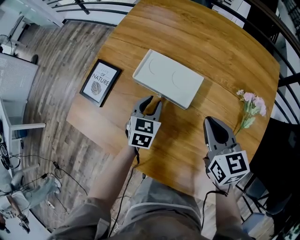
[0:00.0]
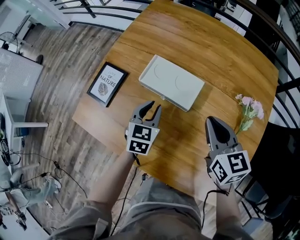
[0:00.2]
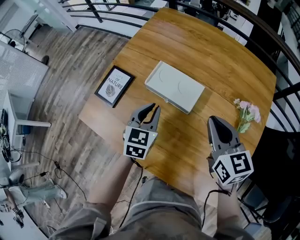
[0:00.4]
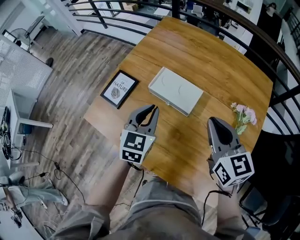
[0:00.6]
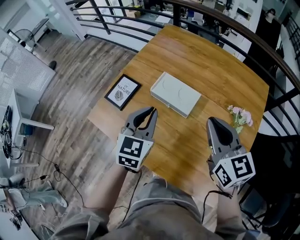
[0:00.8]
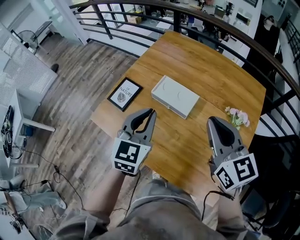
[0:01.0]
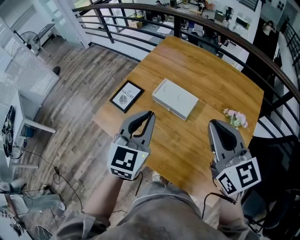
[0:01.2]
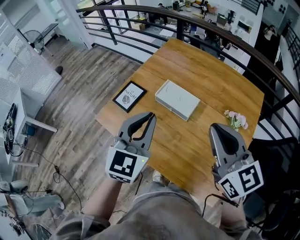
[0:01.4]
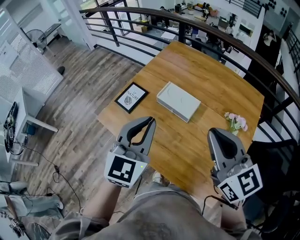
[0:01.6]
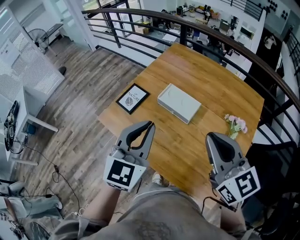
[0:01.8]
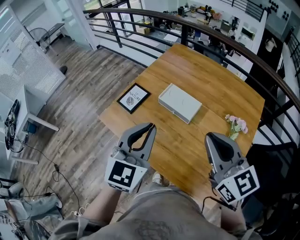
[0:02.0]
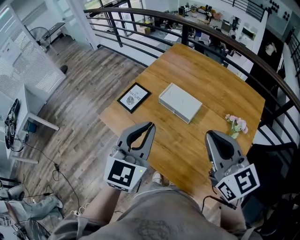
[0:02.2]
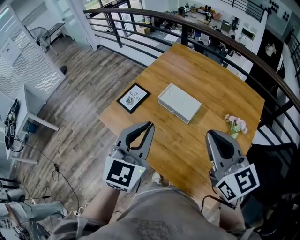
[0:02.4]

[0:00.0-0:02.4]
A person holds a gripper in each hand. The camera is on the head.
0:00.0 to 0:01.2: The grippers both shift upward by some 30 cm. The right gripper changes its angle by approximately 20 degrees. The left gripper turns by about 30 degrees, and closes.
0:01.2 to 0:02.4: The left gripper heads backward, covering approximately 5 cm.

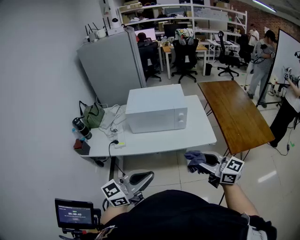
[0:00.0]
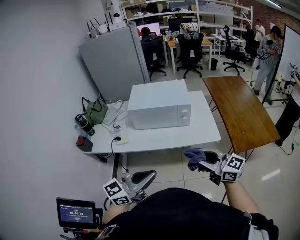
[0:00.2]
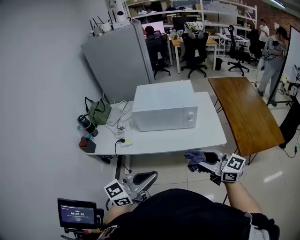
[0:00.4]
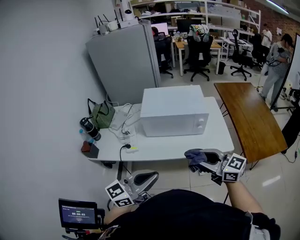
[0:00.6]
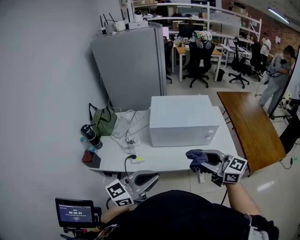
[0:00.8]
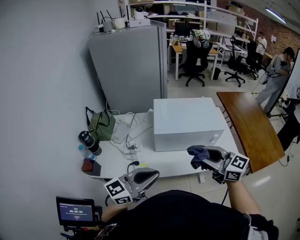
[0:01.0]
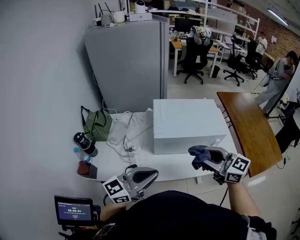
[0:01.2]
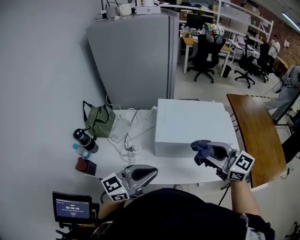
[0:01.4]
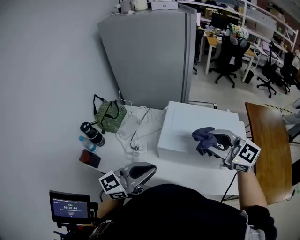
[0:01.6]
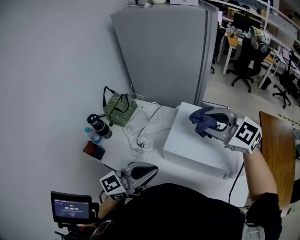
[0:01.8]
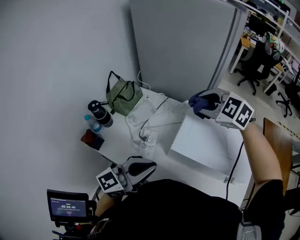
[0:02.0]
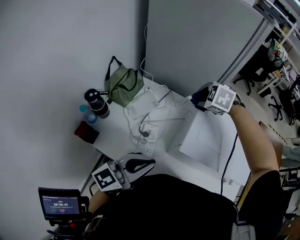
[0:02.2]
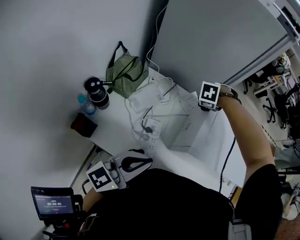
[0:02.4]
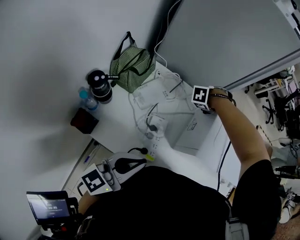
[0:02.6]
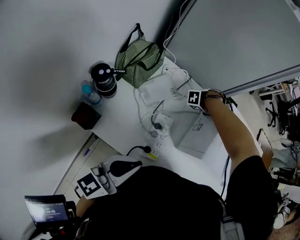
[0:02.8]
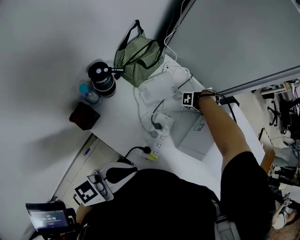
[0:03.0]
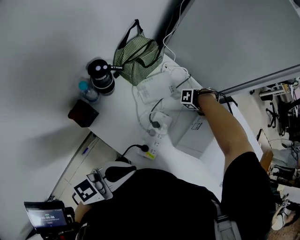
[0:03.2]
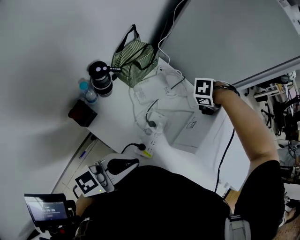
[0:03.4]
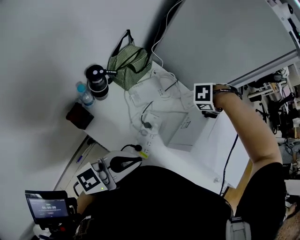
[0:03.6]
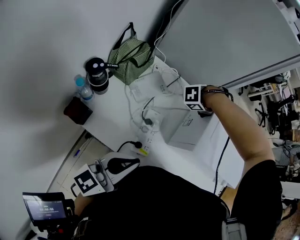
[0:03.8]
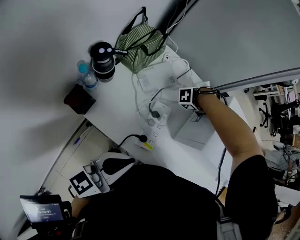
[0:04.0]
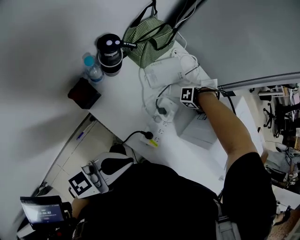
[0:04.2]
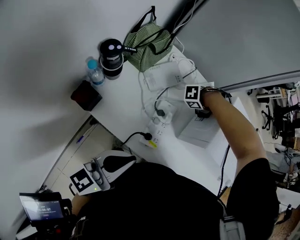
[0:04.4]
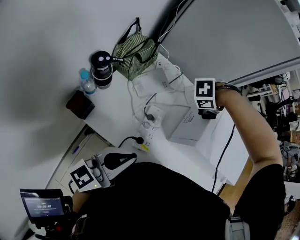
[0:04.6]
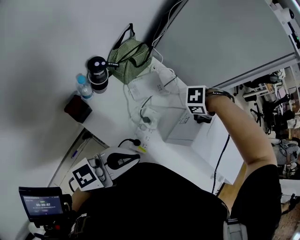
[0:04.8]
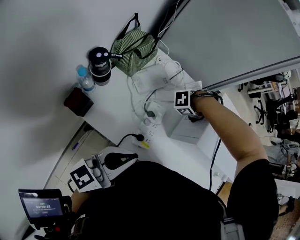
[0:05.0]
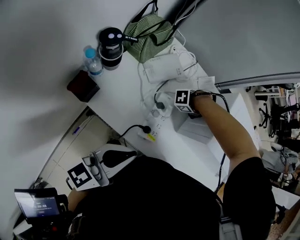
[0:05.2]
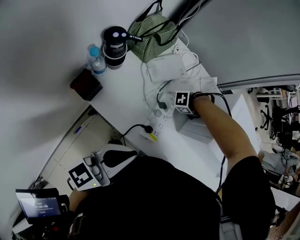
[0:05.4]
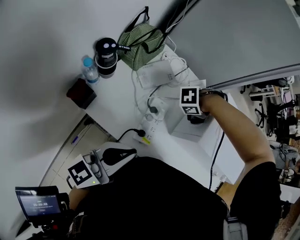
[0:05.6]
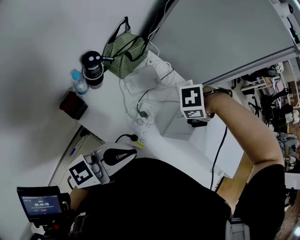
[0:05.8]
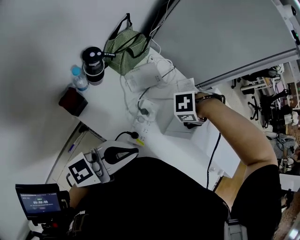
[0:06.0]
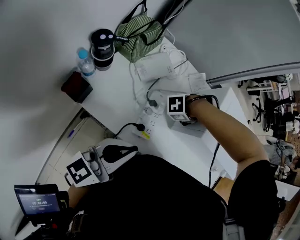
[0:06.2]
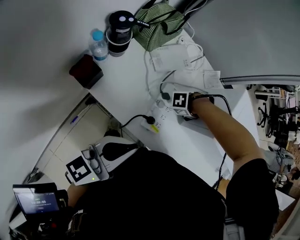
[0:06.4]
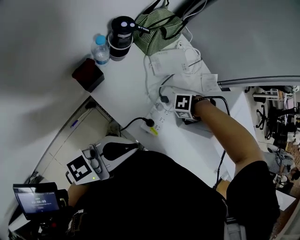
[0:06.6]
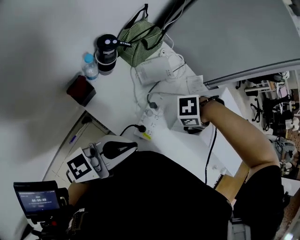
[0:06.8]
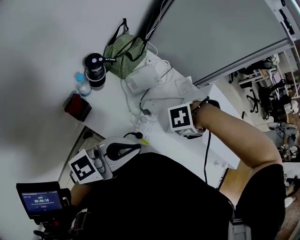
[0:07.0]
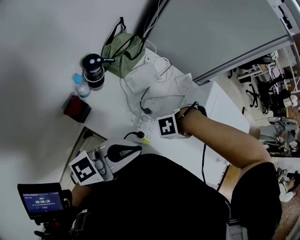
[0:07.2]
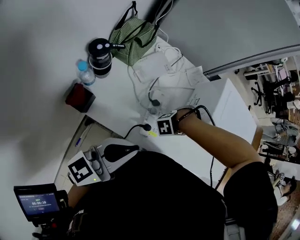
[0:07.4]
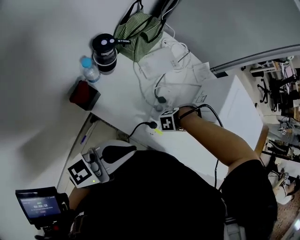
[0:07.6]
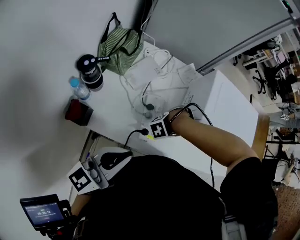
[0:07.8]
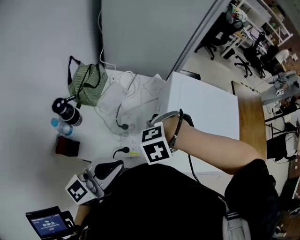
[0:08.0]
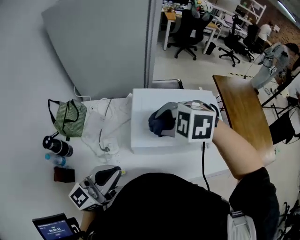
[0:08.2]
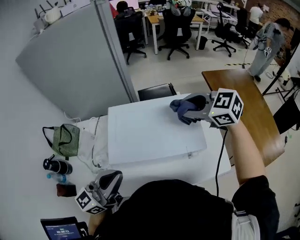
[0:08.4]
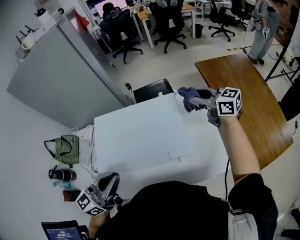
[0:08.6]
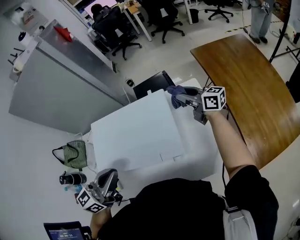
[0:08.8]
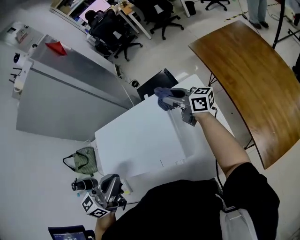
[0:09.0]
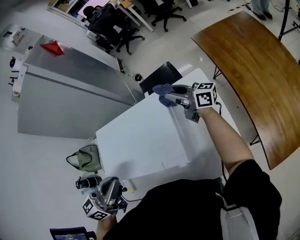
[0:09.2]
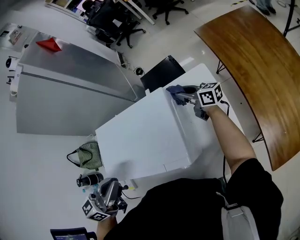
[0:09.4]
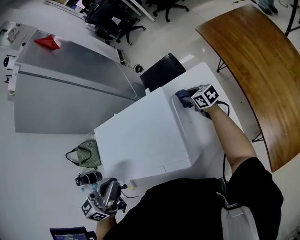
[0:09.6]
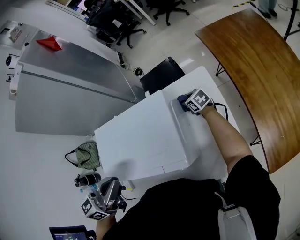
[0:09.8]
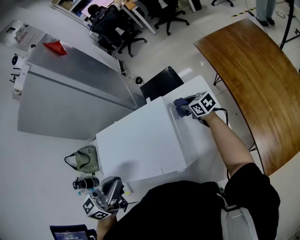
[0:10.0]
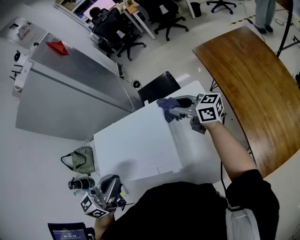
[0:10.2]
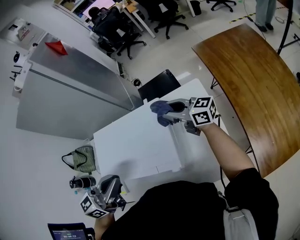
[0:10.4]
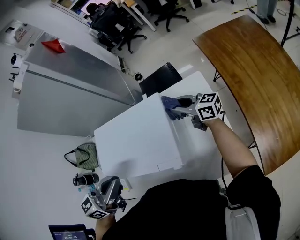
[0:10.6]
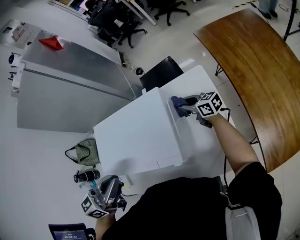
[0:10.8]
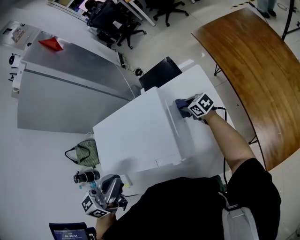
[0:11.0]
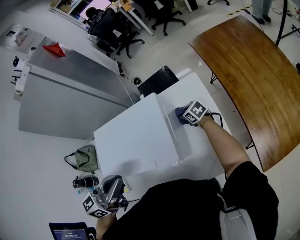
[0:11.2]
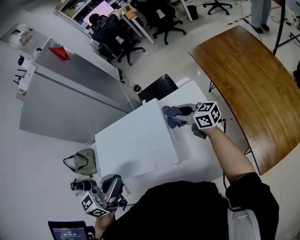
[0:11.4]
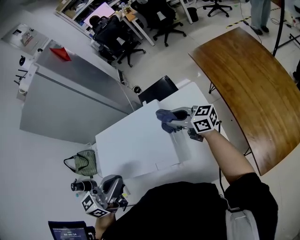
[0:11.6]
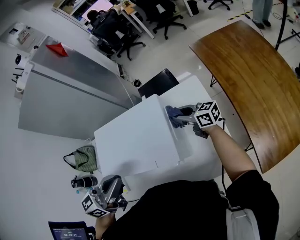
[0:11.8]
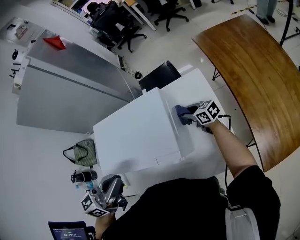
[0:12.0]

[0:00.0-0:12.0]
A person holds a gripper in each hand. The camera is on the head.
0:00.0 to 0:01.6: Both grippers move forward and to the left, roughly 40 cm. The right gripper turns by some 30 degrees.
0:01.6 to 0:03.0: The left gripper ends up some 25 cm from where it was, and turns by some 30 degrees, while the right gripper shifts approximately 40 cm downward, and angles its fingers downward, by about 40 degrees.
0:03.0 to 0:04.4: The right gripper swings up and down, roughly 20 cm each way, with 2 reversals.
0:04.4 to 0:06.0: The right gripper goes up and down, roughly 20 cm each way, reversing 3 times. Meanwhile the left gripper swings up and down, roughly 5 cm each way, with 2 reversals.
0:06.0 to 0:07.6: The right gripper swings up and down, roughly 20 cm each way, with 2 reversals, while the left gripper goes up and down, roughly 10 cm each way, reversing 2 times.
0:07.6 to 0:09.0: Both grippers are carried about 50 cm. The left gripper changes its angle by approximately 30 degrees. Meanwhile the right gripper tilts its fingers approximately 70 degrees upward.
0:09.0 to 0:10.4: The right gripper reaches roughly 25 cm downward, then returns.
0:10.4 to 0:12.0: The right gripper goes up and down, some 25 cm each way, reversing 2 times, and swivels some 30 degrees.

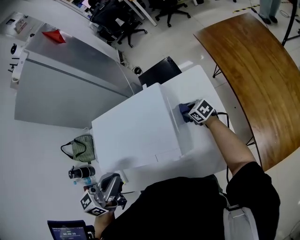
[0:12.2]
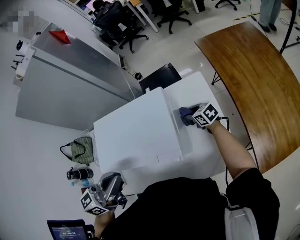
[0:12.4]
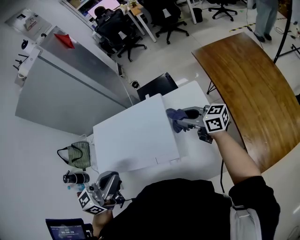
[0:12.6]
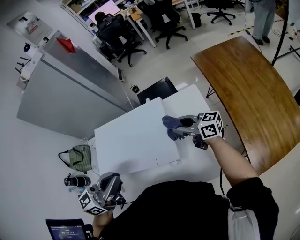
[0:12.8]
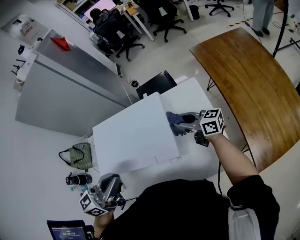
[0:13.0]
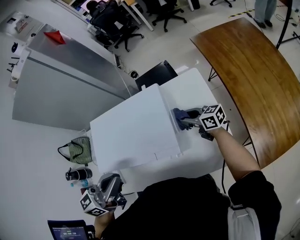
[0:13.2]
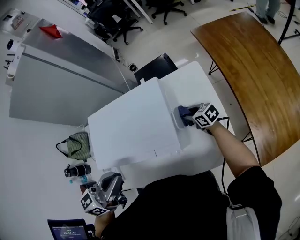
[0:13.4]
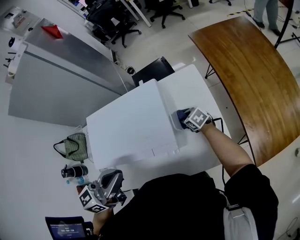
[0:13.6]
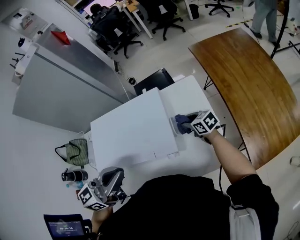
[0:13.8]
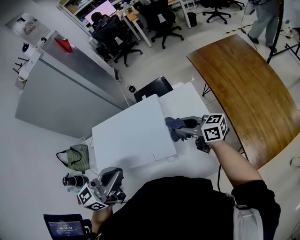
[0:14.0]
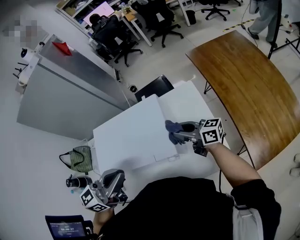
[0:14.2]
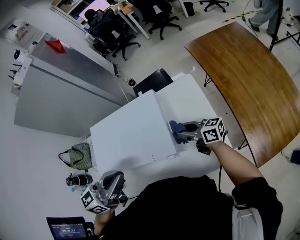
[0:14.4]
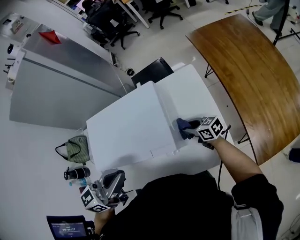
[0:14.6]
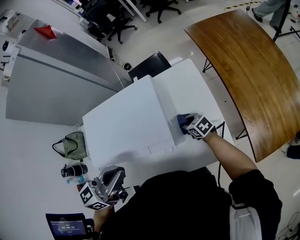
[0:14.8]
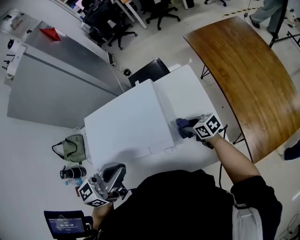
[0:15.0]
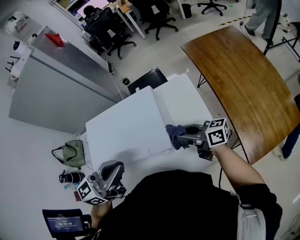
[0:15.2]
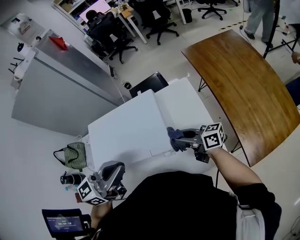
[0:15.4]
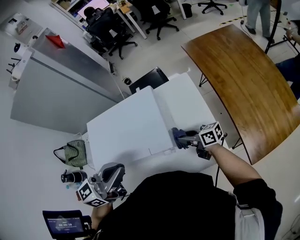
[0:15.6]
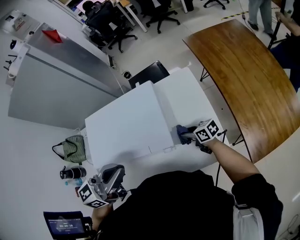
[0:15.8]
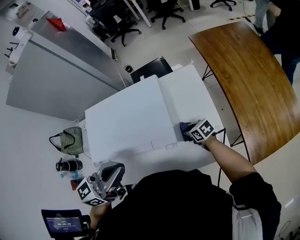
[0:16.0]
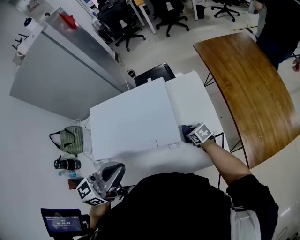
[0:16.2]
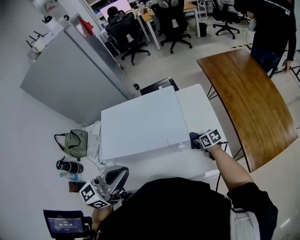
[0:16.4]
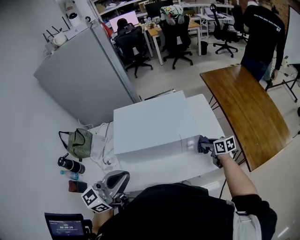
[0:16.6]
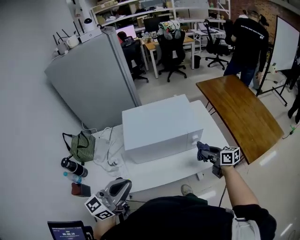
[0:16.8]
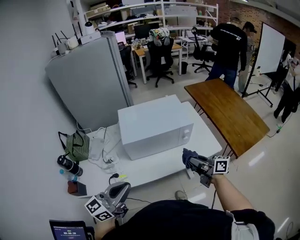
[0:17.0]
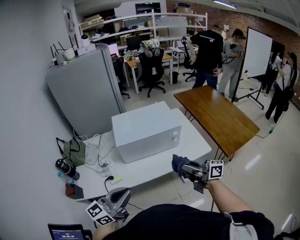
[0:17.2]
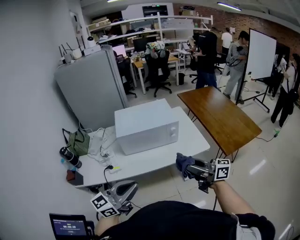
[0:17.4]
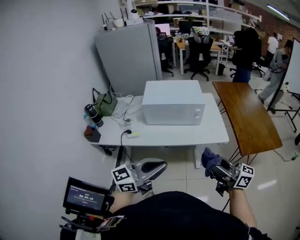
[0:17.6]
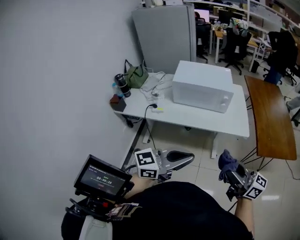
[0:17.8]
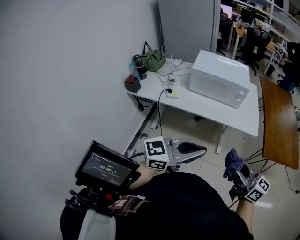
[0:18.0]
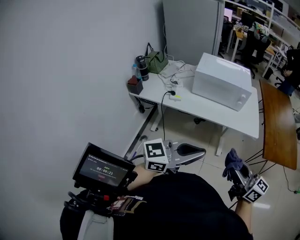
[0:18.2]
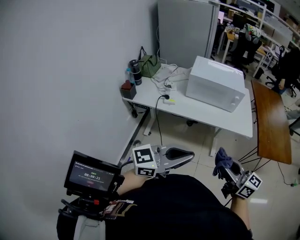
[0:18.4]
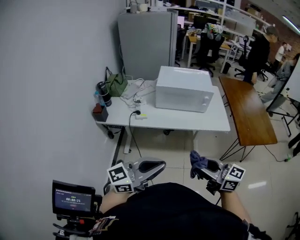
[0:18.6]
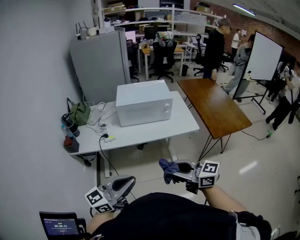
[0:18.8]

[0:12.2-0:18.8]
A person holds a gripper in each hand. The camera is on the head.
0:12.2 to 0:13.8: The right gripper swings up and down, approximately 25 cm each way, with 2 reversals.
0:13.8 to 0:15.4: The right gripper goes up and down, approximately 25 cm each way, reversing 2 times, and tilts its fingers about 30 degrees upward.
0:15.4 to 0:17.2: The right gripper heads backward, covering some 30 cm, and reaches roughly 25 cm downward, then returns; the left gripper heads backward and to the left, covering some 40 cm.
0:17.2 to 0:18.8: Both grippers move backward, about 25 cm. The right gripper changes its angle by some 30 degrees.

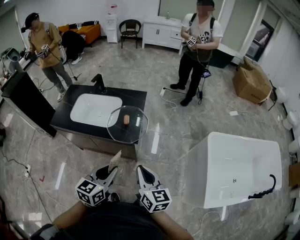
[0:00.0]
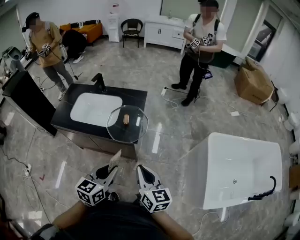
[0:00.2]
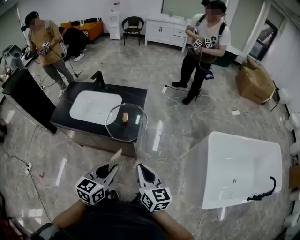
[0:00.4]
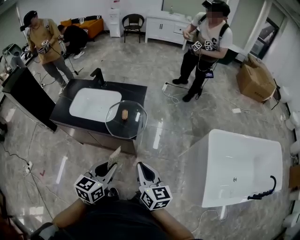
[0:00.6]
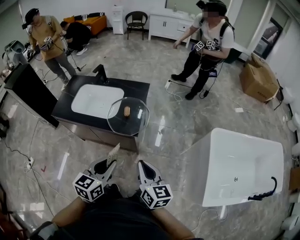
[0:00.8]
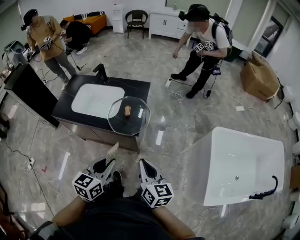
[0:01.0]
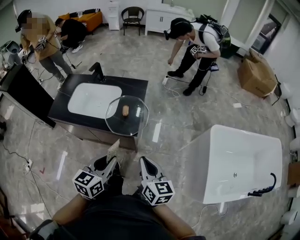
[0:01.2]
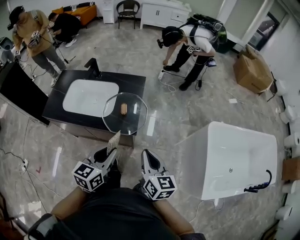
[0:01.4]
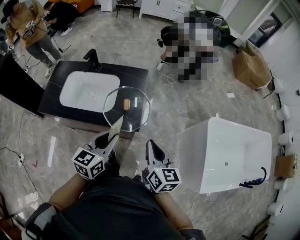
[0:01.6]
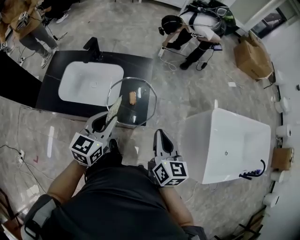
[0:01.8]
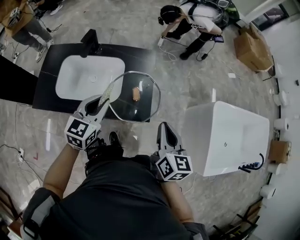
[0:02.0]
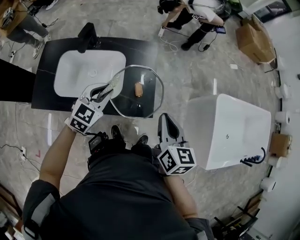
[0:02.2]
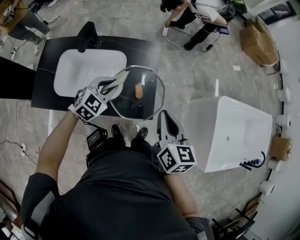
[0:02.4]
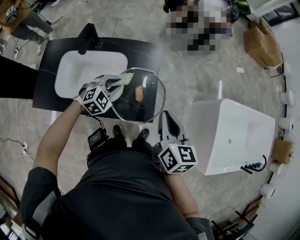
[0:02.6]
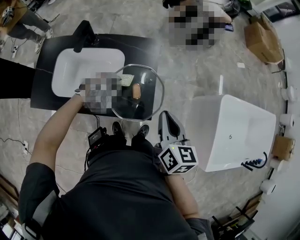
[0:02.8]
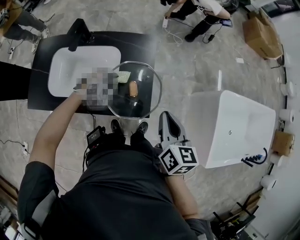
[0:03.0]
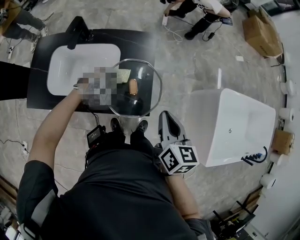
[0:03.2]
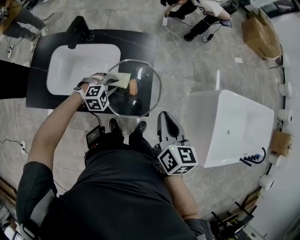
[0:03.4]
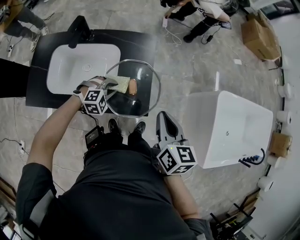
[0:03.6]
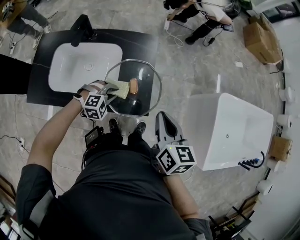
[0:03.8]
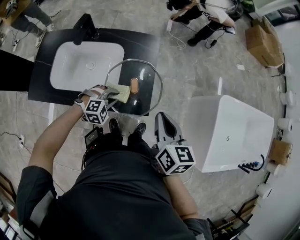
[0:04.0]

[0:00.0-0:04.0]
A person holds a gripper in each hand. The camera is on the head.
0:00.0 to 0:01.4: The grippers both shift forward by approximately 10 cm.
0:01.4 to 0:02.6: The right gripper goes about 20 cm forward and to the left, while the left gripper moves forward, downward and to the left, some 35 cm, and rolls clockwise, seen from behind, by about 50 degrees.
0:02.6 to 0:04.0: The left gripper goes approximately 10 cm downward and backward.
